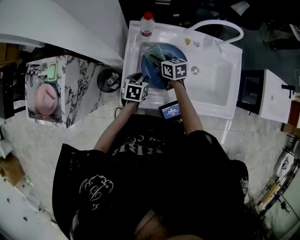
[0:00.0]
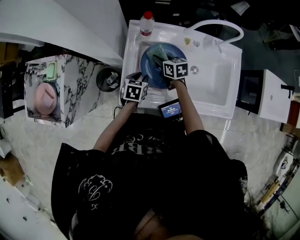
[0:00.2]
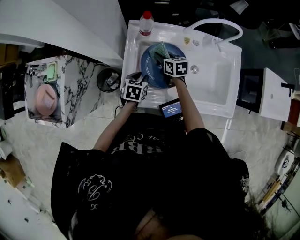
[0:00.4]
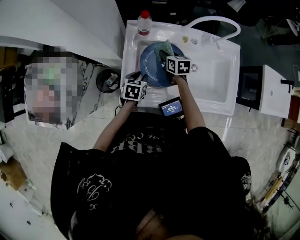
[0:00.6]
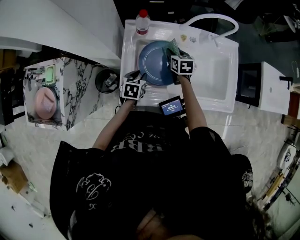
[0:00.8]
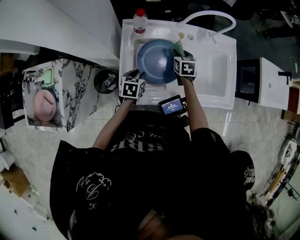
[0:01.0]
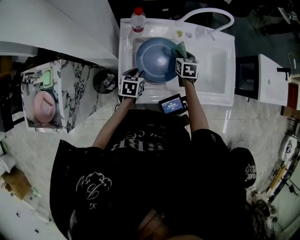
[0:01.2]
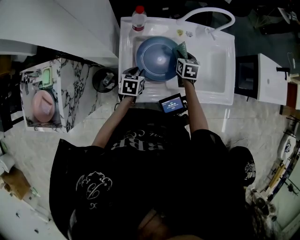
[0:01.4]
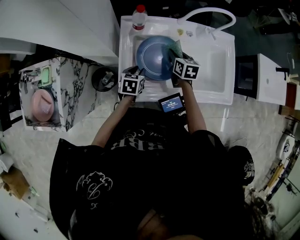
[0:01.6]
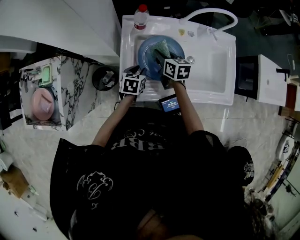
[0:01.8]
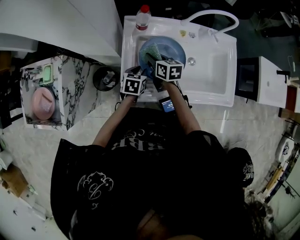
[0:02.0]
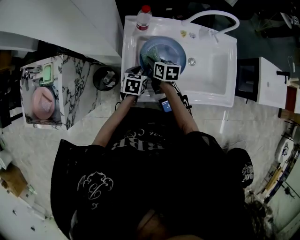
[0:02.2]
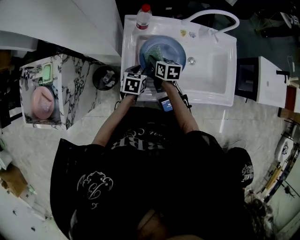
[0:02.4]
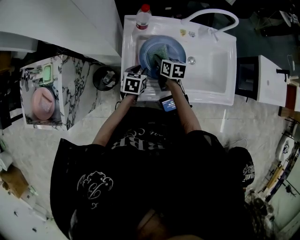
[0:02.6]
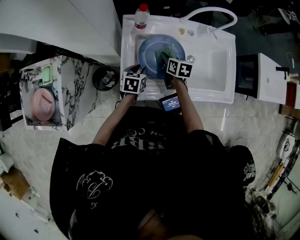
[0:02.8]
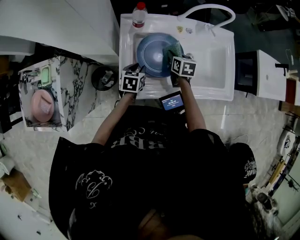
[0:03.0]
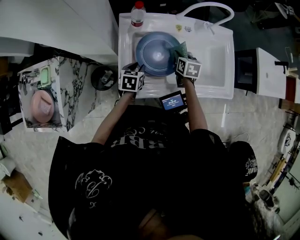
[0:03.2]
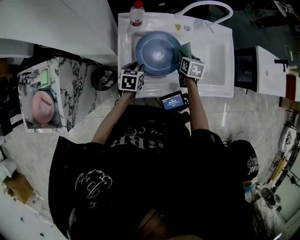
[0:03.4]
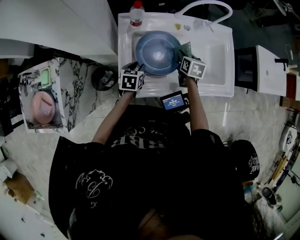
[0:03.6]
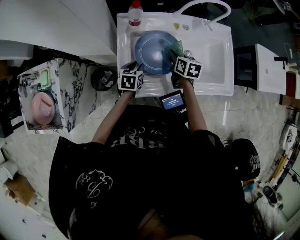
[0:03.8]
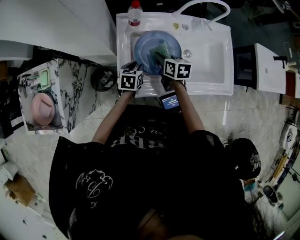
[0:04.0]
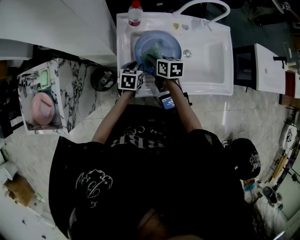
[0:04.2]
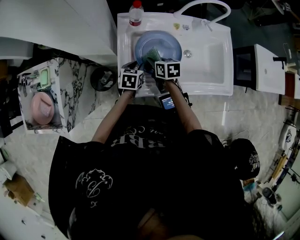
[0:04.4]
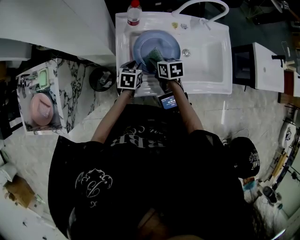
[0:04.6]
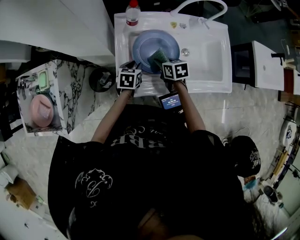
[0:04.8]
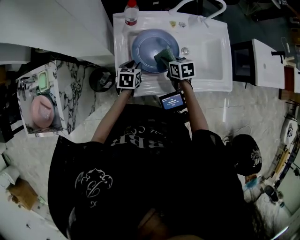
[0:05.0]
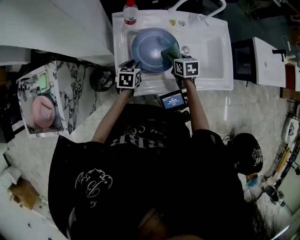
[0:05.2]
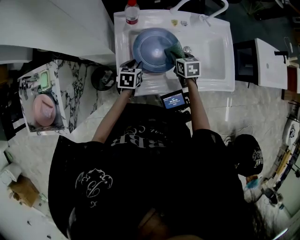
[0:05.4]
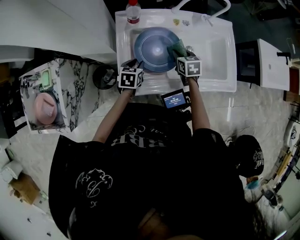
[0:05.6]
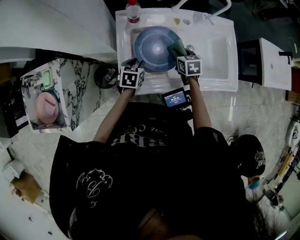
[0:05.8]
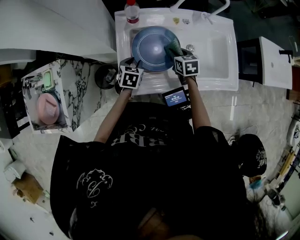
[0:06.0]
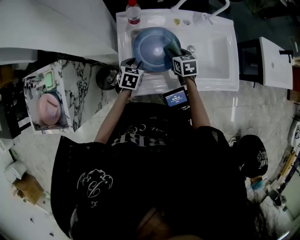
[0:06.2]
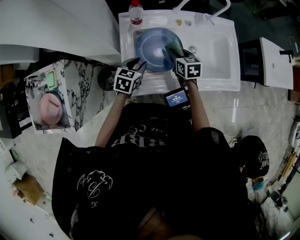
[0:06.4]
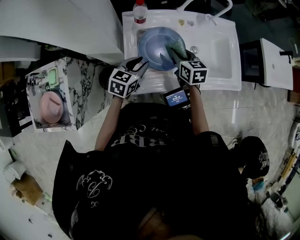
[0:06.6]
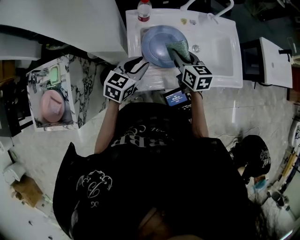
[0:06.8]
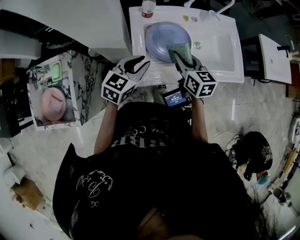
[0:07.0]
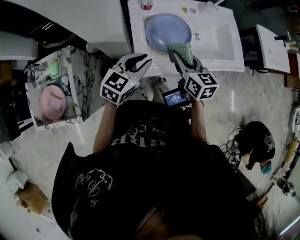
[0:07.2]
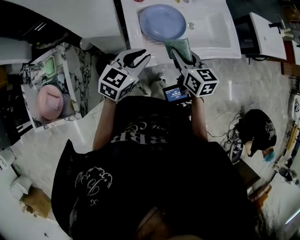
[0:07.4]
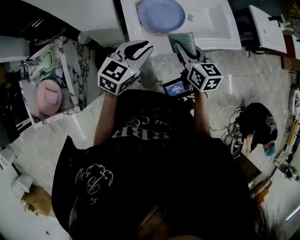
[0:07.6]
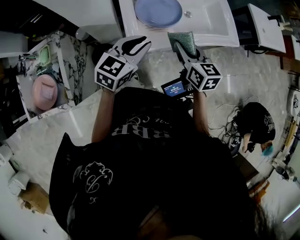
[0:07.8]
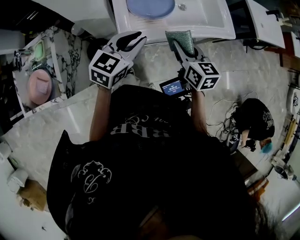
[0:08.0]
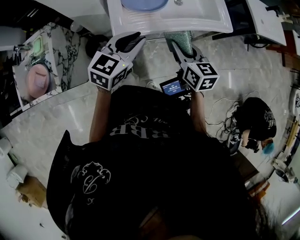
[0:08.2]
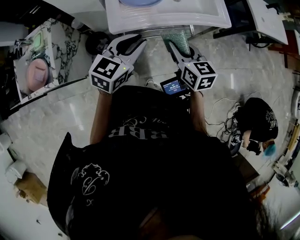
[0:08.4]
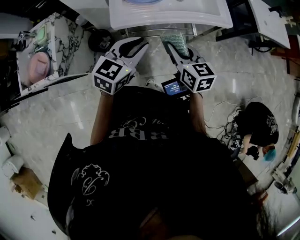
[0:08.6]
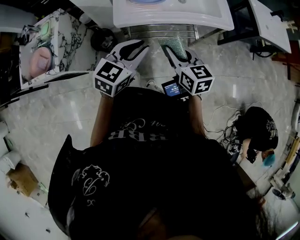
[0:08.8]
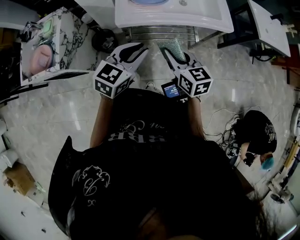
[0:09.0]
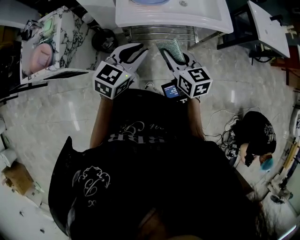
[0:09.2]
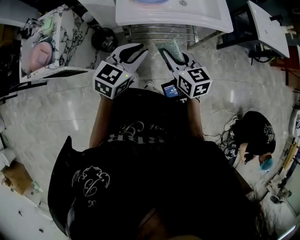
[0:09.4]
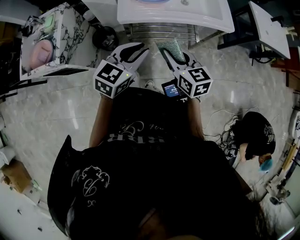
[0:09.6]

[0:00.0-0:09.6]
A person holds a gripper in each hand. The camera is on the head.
0:00.0 to 0:01.6: The right gripper moves to the right, roughly 10 cm, and swivels roughly 30 degrees.
0:01.6 to 0:03.2: The right gripper goes to the left and returns, approximately 10 cm each way.
0:03.2 to 0:04.8: The right gripper heads to the left and backward, covering approximately 10 cm, and changes its angle by roughly 20 degrees.
0:04.8 to 0:06.4: The right gripper ends up approximately 5 cm from where it was. The left gripper moves upward, some 5 cm.
0:06.4 to 0:08.0: Both grippers travel together backward and upward, roughly 25 cm. The left gripper swivels about 30 degrees.
0:08.0 to 0:09.6: The left gripper is displaced backward and to the right by roughly 20 cm, while the right gripper is displaced backward by approximately 15 cm.

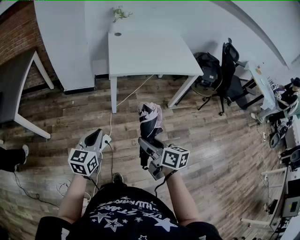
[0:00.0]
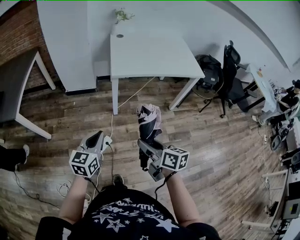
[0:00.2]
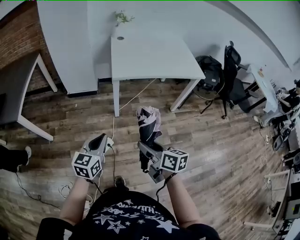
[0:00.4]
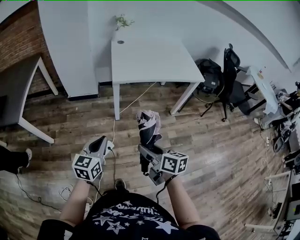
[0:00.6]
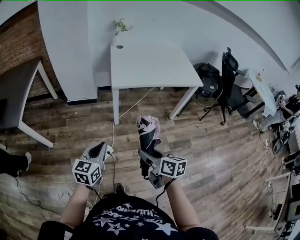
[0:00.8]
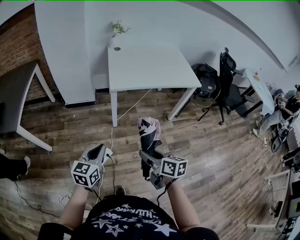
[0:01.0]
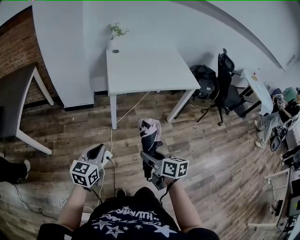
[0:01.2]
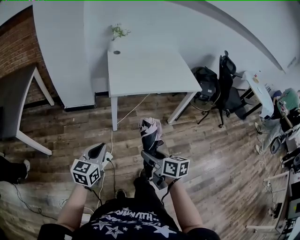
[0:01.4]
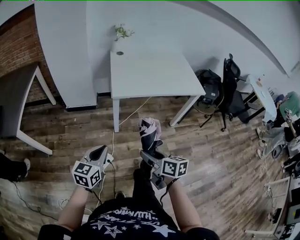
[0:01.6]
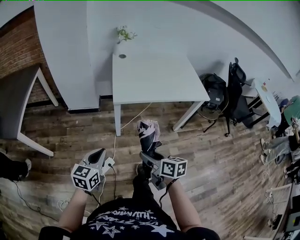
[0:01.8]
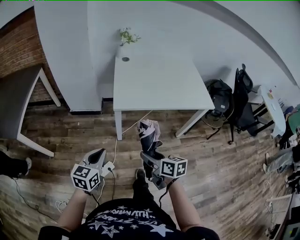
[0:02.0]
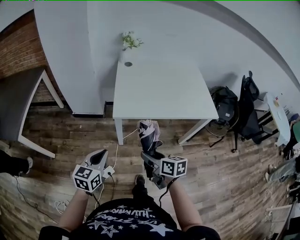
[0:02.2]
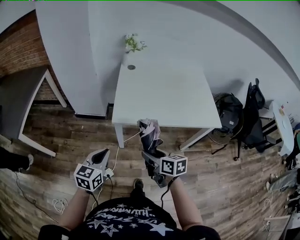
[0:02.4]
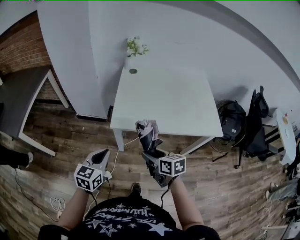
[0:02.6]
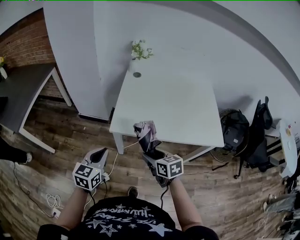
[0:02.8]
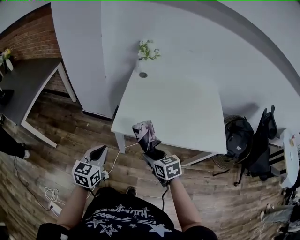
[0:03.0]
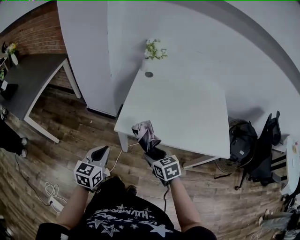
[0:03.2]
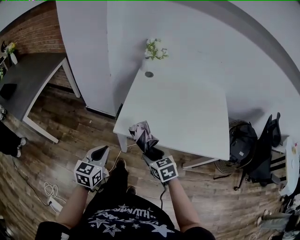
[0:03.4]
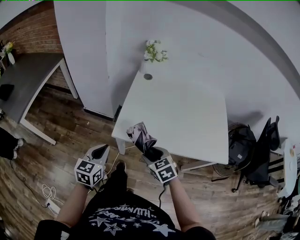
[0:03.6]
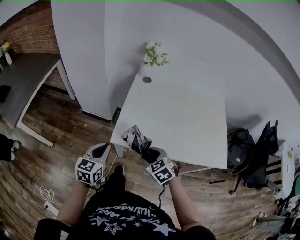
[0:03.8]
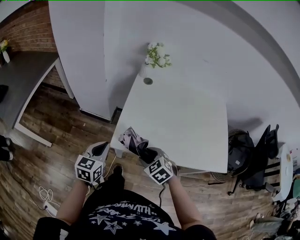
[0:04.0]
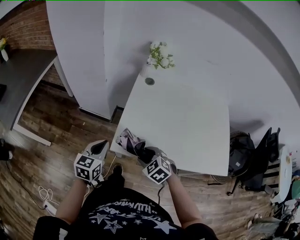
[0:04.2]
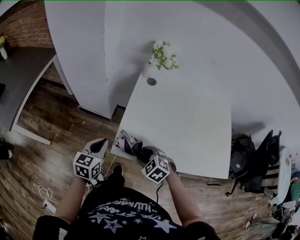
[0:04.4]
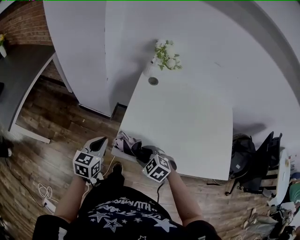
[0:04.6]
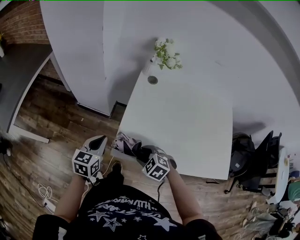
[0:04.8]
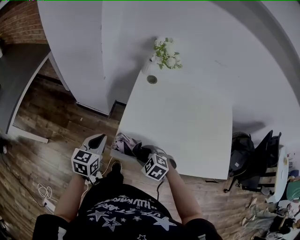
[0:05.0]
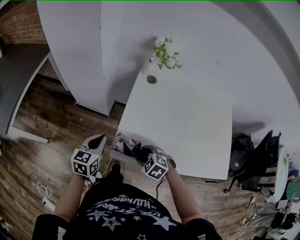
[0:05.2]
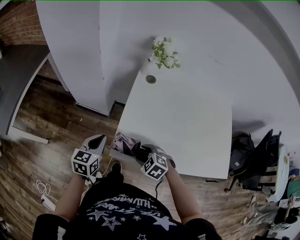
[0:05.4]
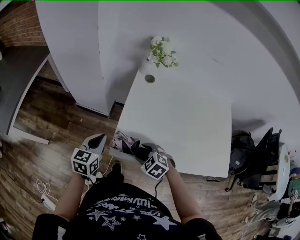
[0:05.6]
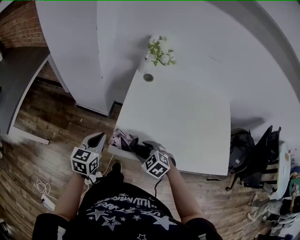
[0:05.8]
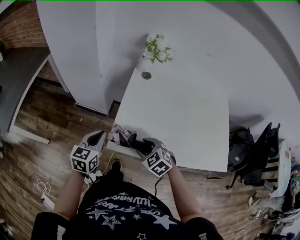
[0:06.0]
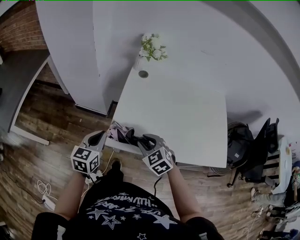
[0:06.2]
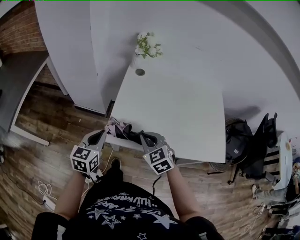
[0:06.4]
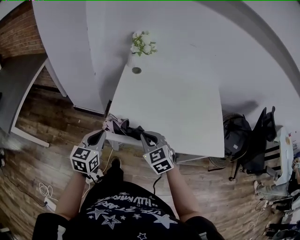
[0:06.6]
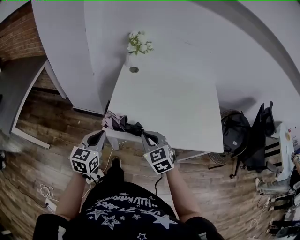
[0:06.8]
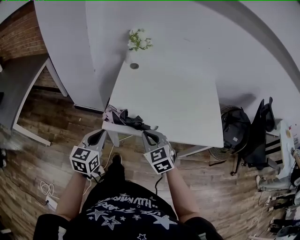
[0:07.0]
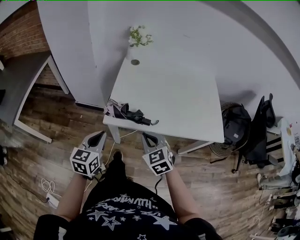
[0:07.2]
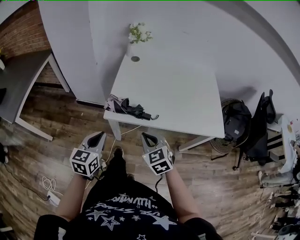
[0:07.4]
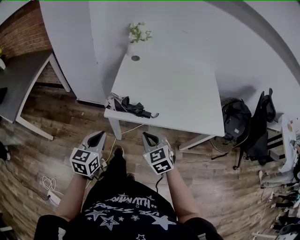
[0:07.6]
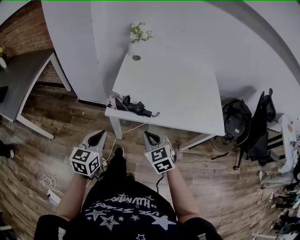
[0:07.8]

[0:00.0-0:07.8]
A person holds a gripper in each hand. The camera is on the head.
0:00.0 to 0:01.6: The right gripper heads forward, covering some 5 cm.
0:01.6 to 0:03.2: Both grippers travel together forward and to the right, roughly 30 cm. The left gripper rotates about 20 degrees, while the right gripper twists roughly 40 degrees counterclockwise, seen from behind.
0:03.2 to 0:04.6: The left gripper heads forward, covering about 20 cm, while the right gripper shifts some 15 cm forward and downward, and swivels approximately 40 degrees.
0:04.6 to 0:06.2: The right gripper goes roughly 5 cm upward, and turns by roughly 20 degrees.
0:06.2 to 0:07.8: Both grippers move backward, approximately 15 cm. The right gripper closes its fingers.

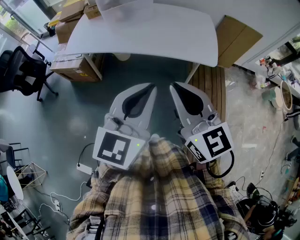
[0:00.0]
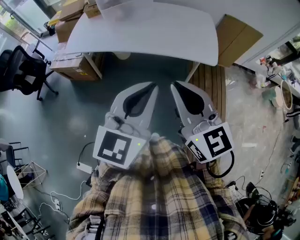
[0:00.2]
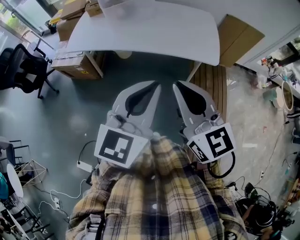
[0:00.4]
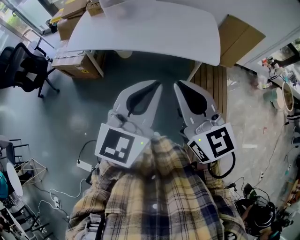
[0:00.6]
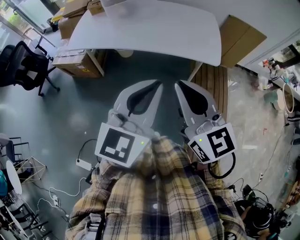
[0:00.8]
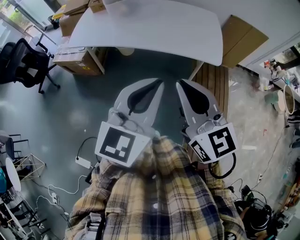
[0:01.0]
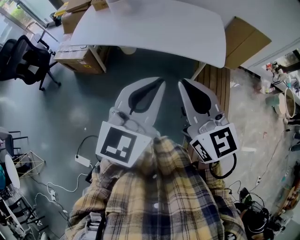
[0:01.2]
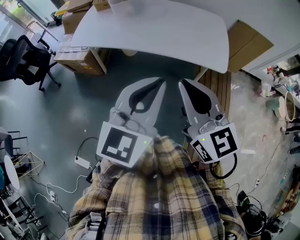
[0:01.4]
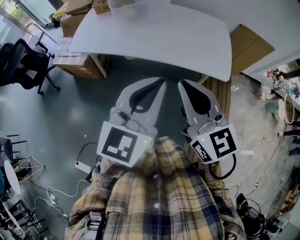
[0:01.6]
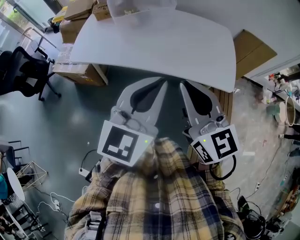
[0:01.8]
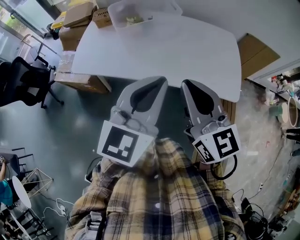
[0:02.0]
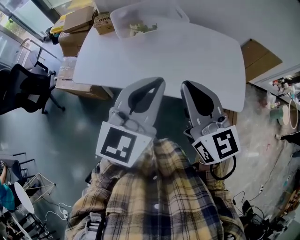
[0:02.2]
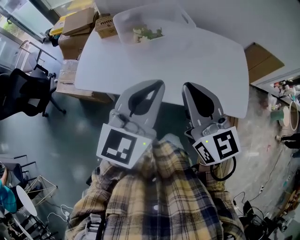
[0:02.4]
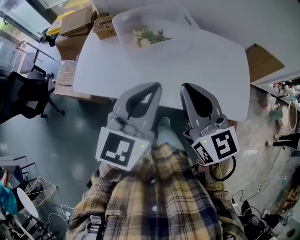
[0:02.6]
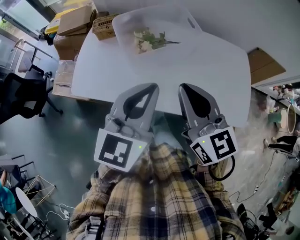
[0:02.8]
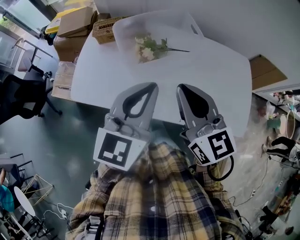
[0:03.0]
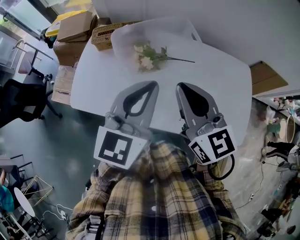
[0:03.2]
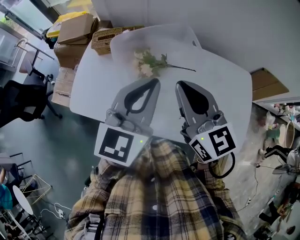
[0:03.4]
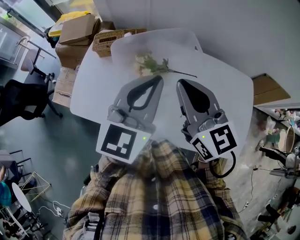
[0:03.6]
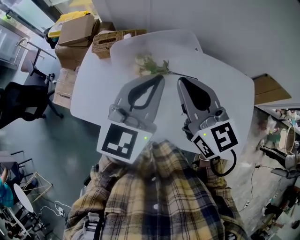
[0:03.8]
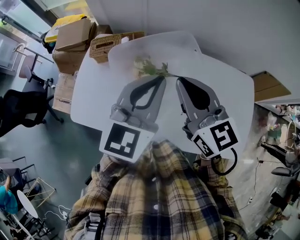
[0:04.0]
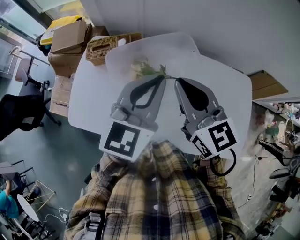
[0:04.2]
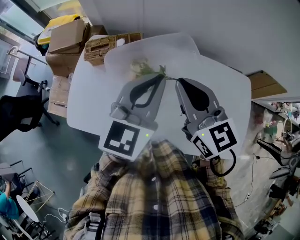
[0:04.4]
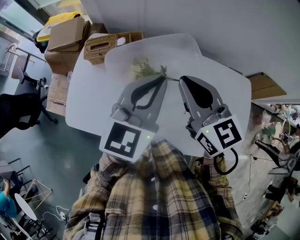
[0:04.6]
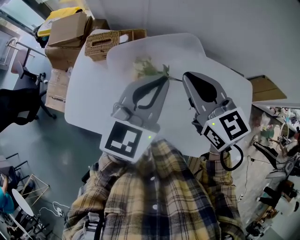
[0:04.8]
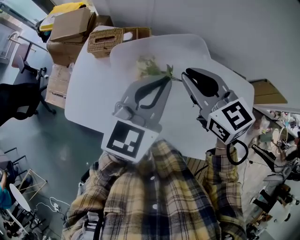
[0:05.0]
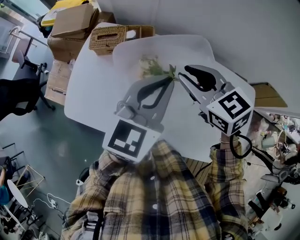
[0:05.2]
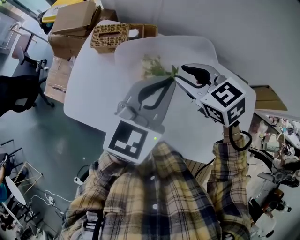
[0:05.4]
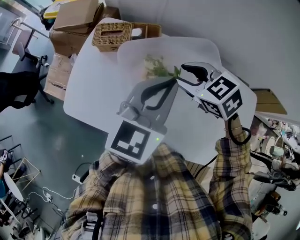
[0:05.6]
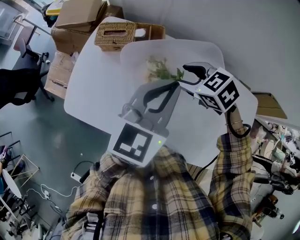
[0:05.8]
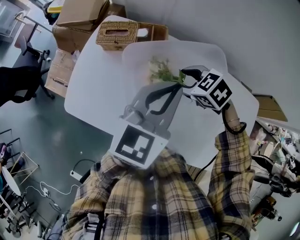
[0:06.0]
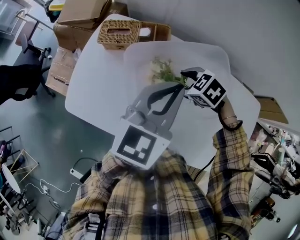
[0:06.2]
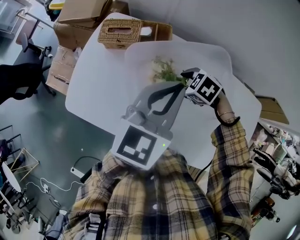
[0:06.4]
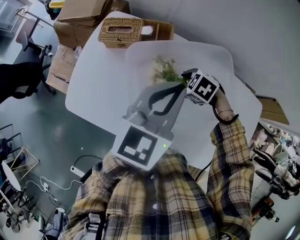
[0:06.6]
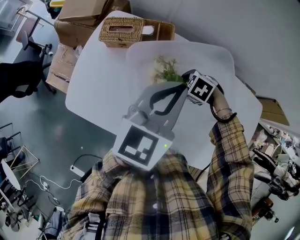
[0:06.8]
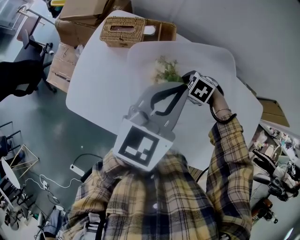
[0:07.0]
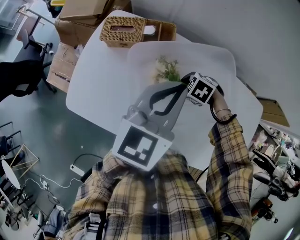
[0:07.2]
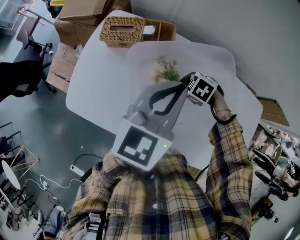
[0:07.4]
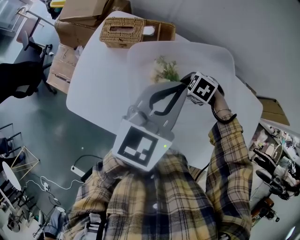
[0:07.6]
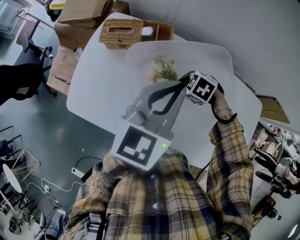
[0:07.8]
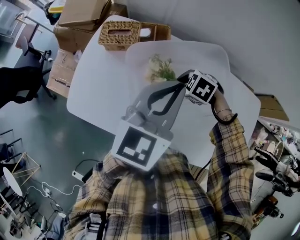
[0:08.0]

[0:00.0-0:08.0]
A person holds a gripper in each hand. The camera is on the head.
0:00.0 to 0:01.6: Both grippers travel together forward, some 10 cm.
0:01.6 to 0:03.2: Both grippers are carried forward, about 50 cm.
0:03.2 to 0:04.8: Both grippers move forward, approximately 20 cm.
0:04.8 to 0:06.4: The left gripper shifts by approximately 10 cm; the right gripper is displaced downward by approximately 25 cm, tilts its fingers roughly 50 degrees downward, and opens up.
0:06.4 to 0:08.0: The right gripper closes up.
